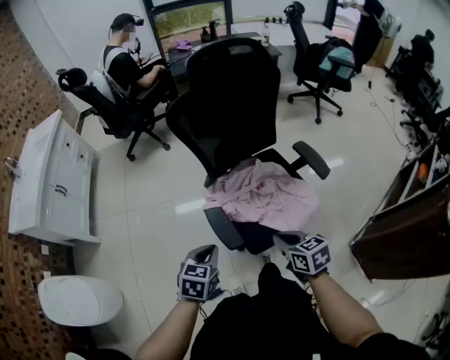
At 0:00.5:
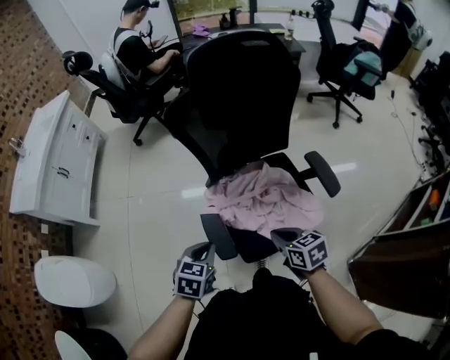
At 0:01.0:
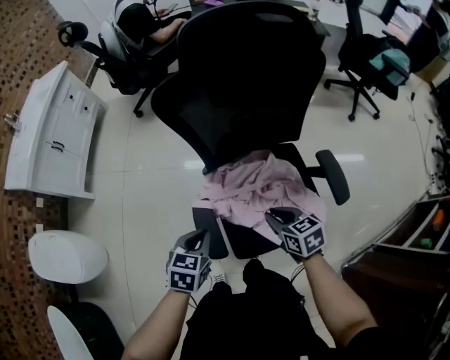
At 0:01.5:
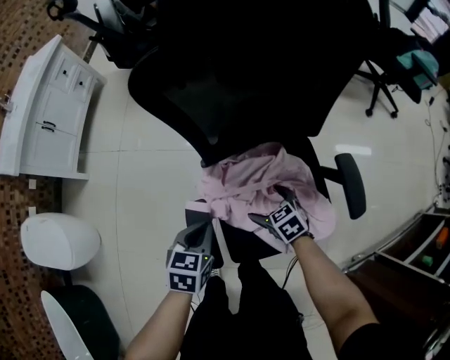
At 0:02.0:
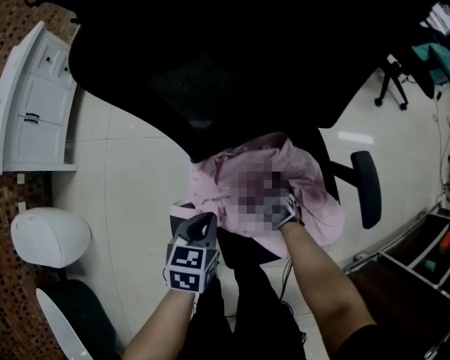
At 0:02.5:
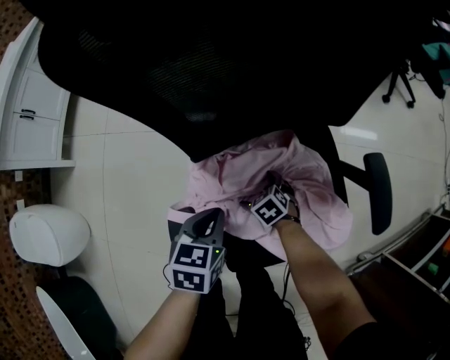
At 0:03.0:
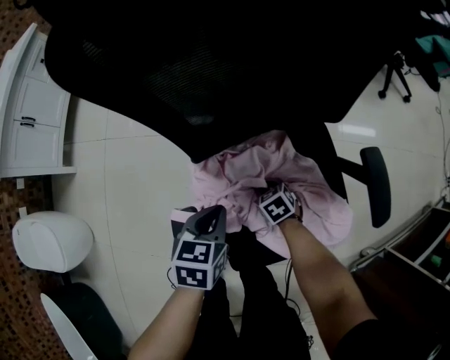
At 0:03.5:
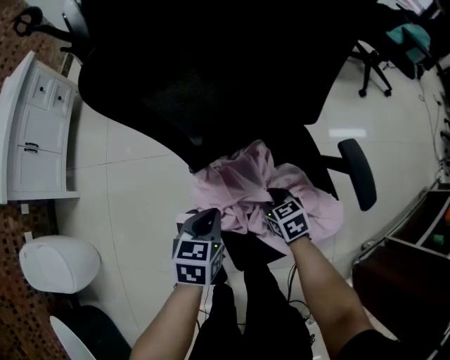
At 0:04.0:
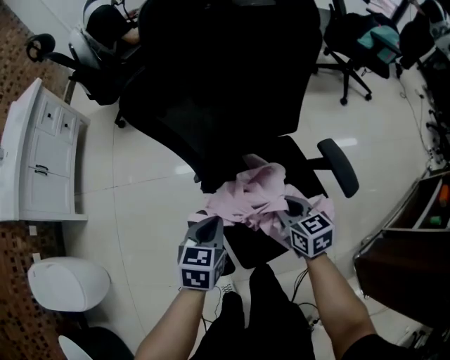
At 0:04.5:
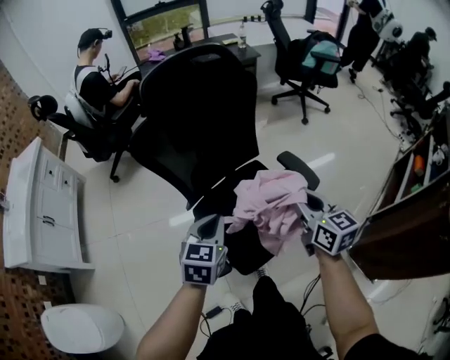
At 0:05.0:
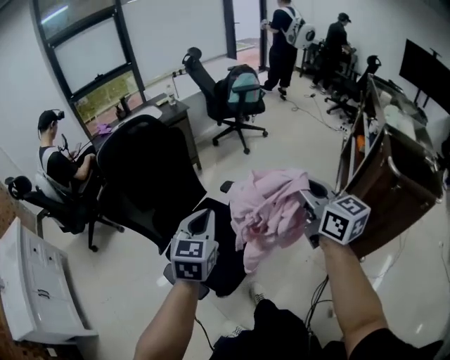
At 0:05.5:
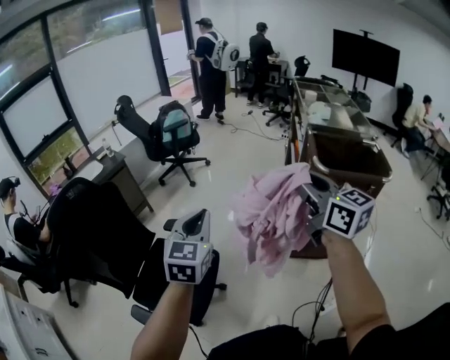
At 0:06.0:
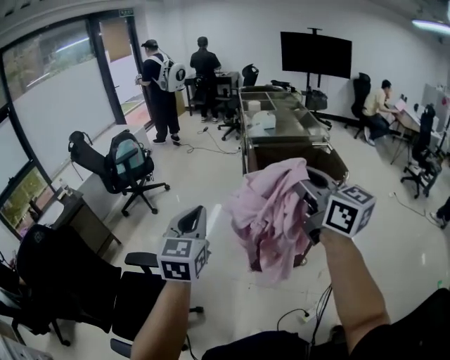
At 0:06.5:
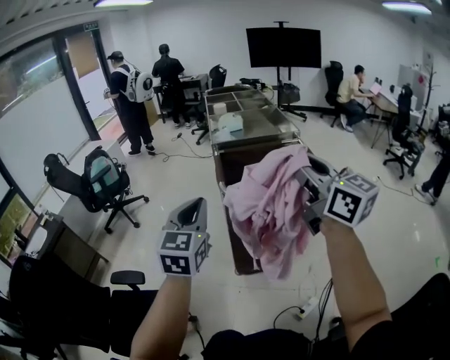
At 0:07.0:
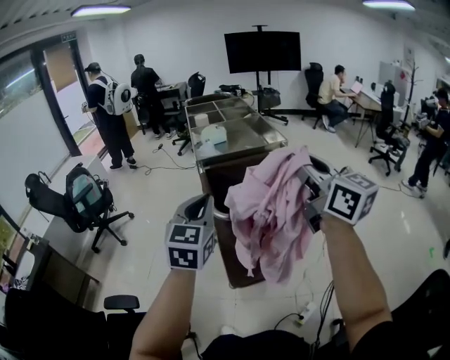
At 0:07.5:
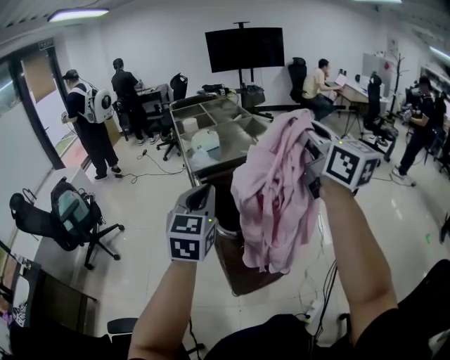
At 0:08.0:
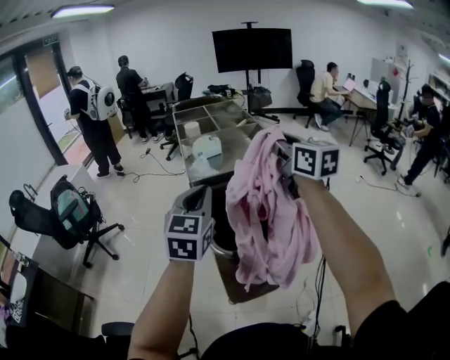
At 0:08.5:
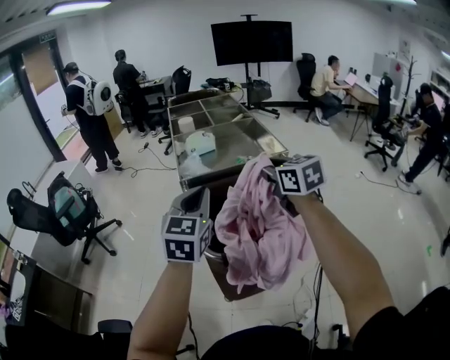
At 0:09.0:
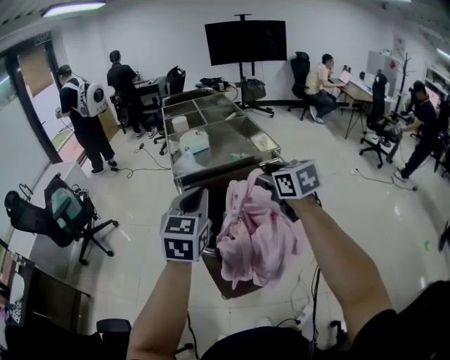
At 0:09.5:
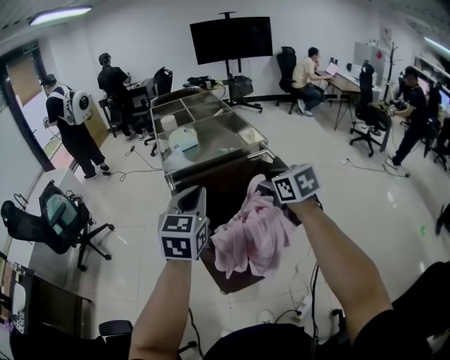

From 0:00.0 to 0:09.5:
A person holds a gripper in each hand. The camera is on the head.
From 0:00.0 to 0:02.0: The left gripper shifts approximately 30 cm forward, downward and to the right; the right gripper is displaced downward and forward by about 40 cm, changes its angle by roughly 40 degrees, and opens its fingers.
From 0:02.0 to 0:04.0: The left gripper is displaced upward by roughly 10 cm, while the right gripper heads upward, covering some 25 cm, turns by approximately 40 degrees, and closes its fingers.
From 0:04.0 to 0:05.5: The pair of grippers is taken about 50 cm. The right gripper points its fingers about 40 degrees further upward. Meanwhile the left gripper angles its fingers upward, by about 30 degrees.
From 0:05.5 to 0:07.5: The two grippers travel together, roughly 50 cm. The right gripper turns by approximately 40 degrees; the left gripper turns by approximately 40 degrees.
From 0:07.5 to 0:09.5: The right gripper moves downward, roughly 25 cm, and points its fingers about 40 degrees further downward; the left gripper shifts some 5 cm to the right.

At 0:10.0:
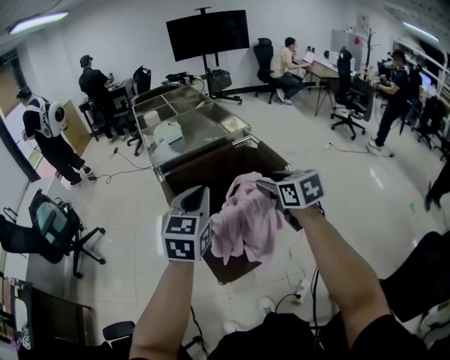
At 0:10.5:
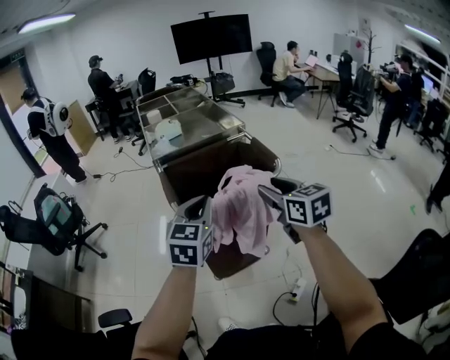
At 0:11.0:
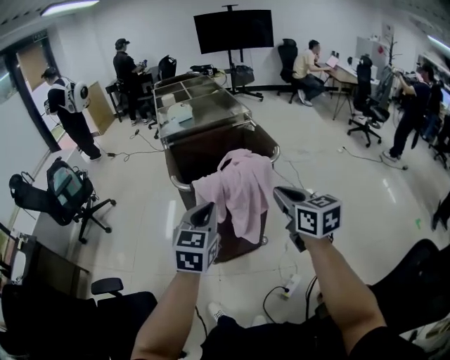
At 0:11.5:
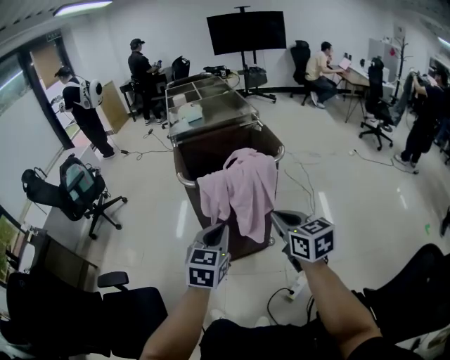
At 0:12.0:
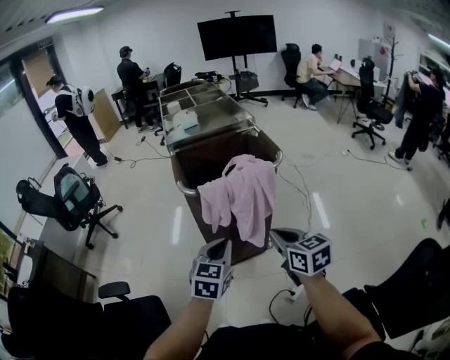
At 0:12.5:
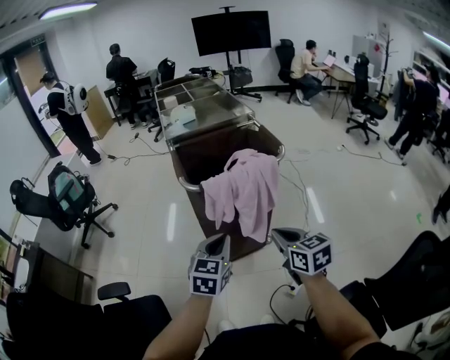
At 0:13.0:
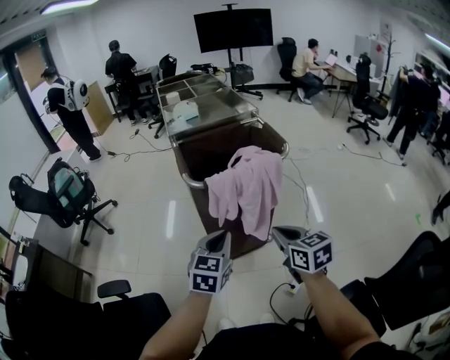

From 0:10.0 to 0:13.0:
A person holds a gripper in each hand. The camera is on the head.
From 0:10.0 to 0:11.5: The right gripper moves backward, some 25 cm, and closes. The left gripper heads backward and downward, covering roughly 25 cm.
From 0:11.5 to 0:13.0: The left gripper shifts by roughly 5 cm; the right gripper changes place by some 5 cm.

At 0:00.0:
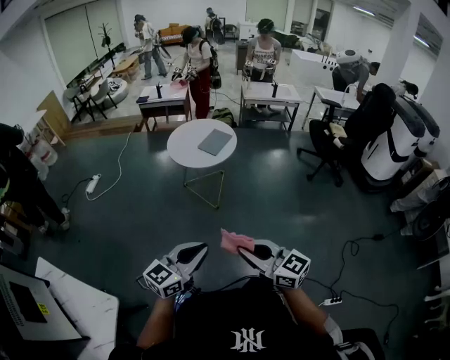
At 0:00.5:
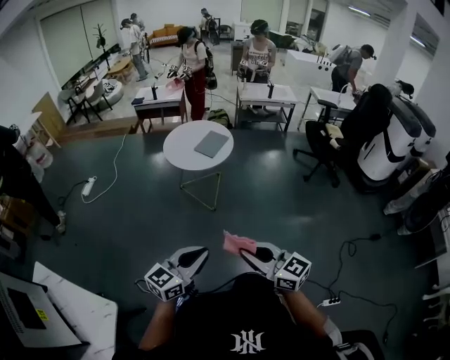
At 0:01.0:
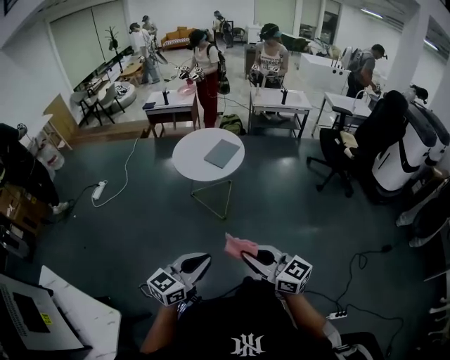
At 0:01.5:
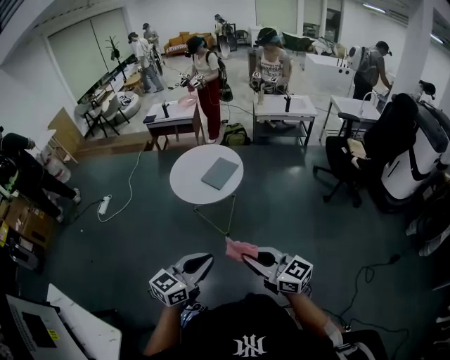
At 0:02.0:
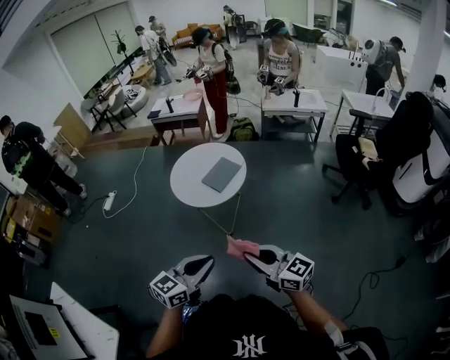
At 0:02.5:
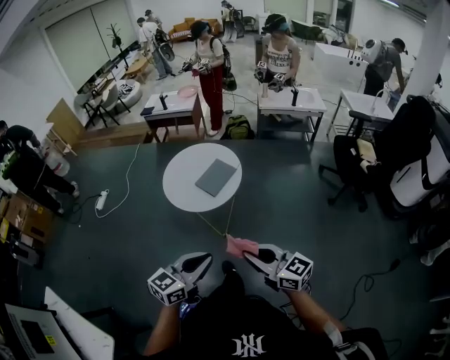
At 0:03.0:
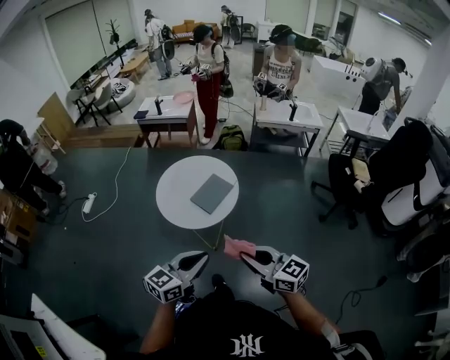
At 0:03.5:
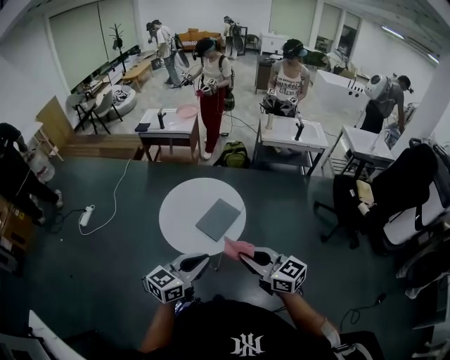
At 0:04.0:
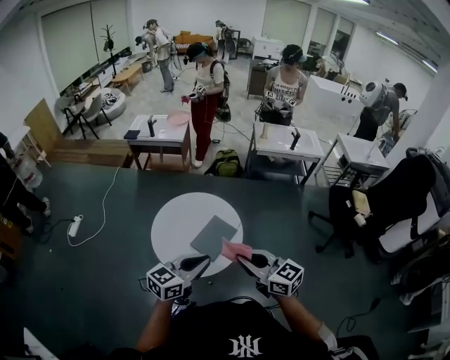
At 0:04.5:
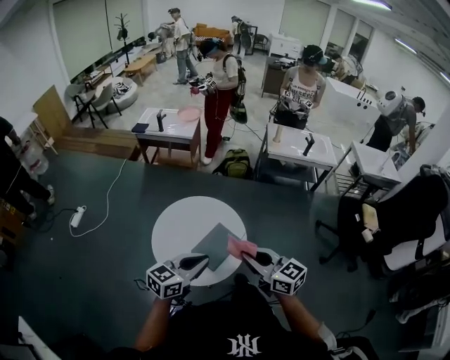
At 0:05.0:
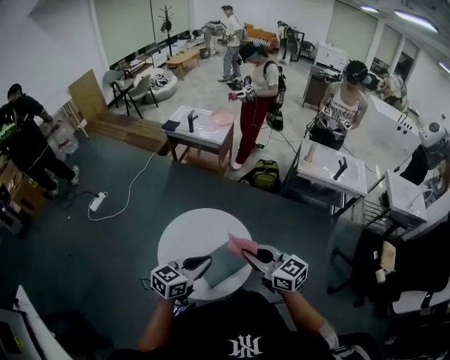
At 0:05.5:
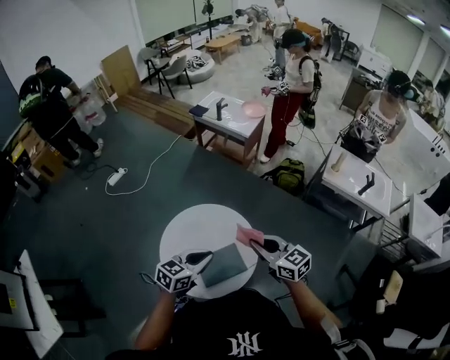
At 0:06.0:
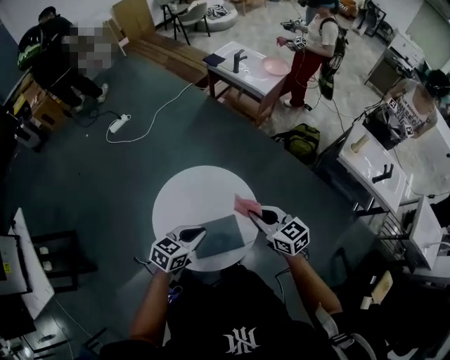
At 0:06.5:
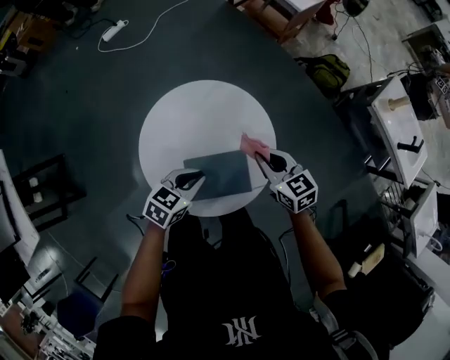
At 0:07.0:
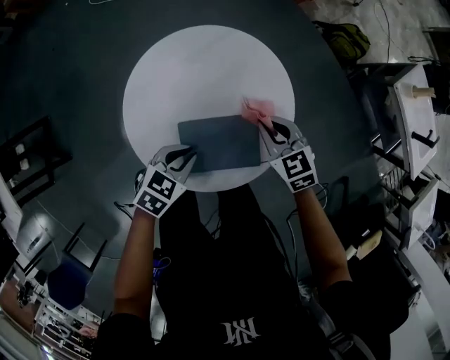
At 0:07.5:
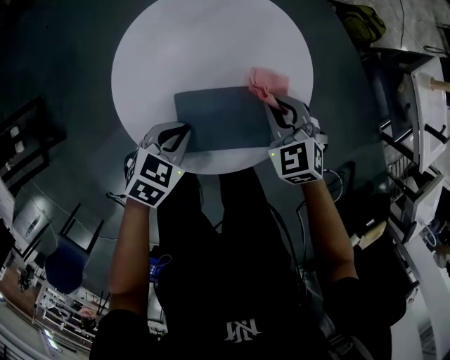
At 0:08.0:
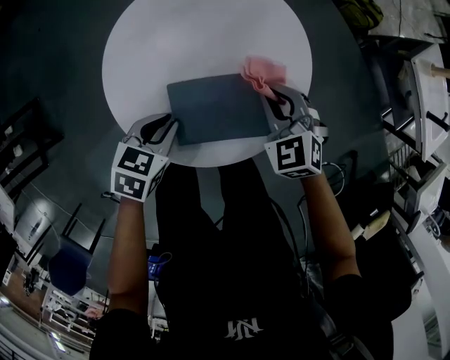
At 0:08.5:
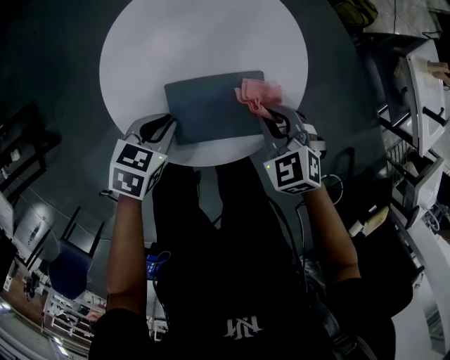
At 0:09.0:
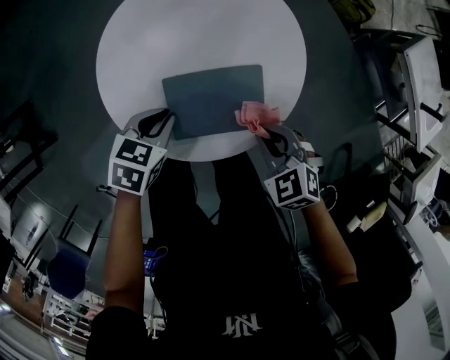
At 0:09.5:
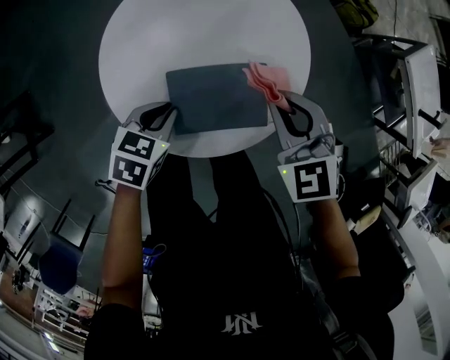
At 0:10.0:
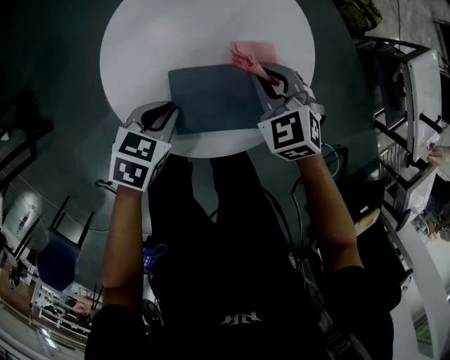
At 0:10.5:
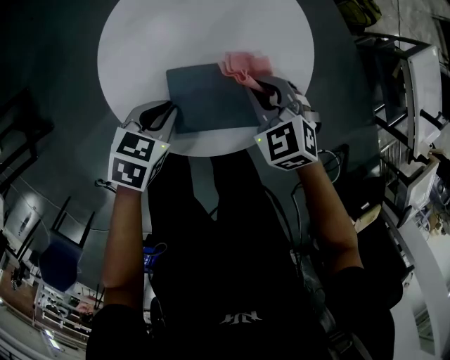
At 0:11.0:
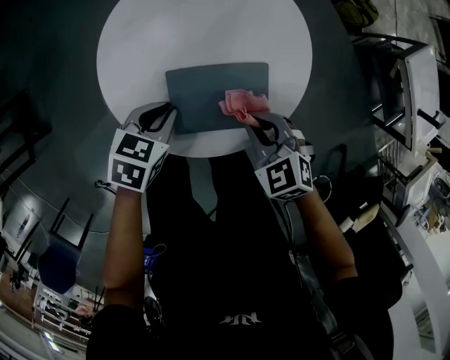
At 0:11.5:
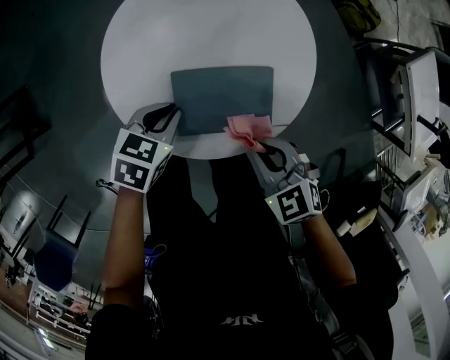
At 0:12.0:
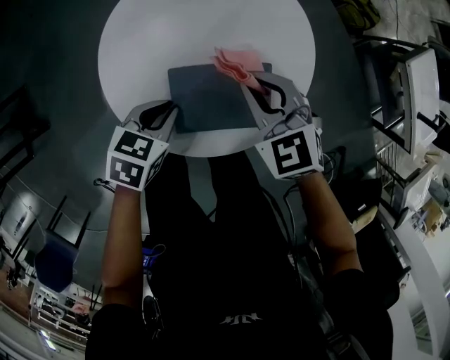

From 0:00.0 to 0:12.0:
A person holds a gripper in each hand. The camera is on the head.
From 0:00.0 to 0:02.0: Both grippers travel together forward and to the right, some 30 cm.
From 0:02.0 to 0:04.0: The pair of grippers is taken forward, approximately 40 cm.
From 0:04.0 to 0:06.0: The left gripper shifts by approximately 30 cm, and swivels some 40 degrees. Meanwhile the right gripper moves about 40 cm, and swivels roughly 40 degrees.
From 0:06.0 to 0:08.0: The grippers both shift downward by roughly 25 cm. The left gripper changes its angle by about 30 degrees. Meanwhile the right gripper changes its angle by roughly 40 degrees.
From 0:08.0 to 0:10.0: The right gripper reaches roughly 10 cm backward, then returns.
From 0:10.0 to 0:12.0: The right gripper travels backward and back again, about 15 cm each way.

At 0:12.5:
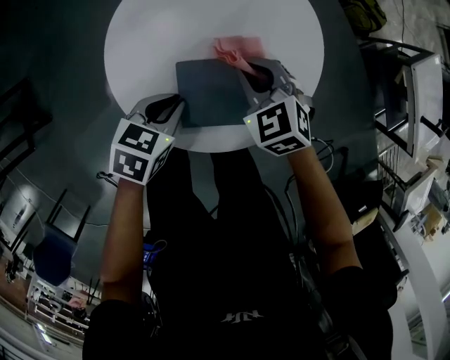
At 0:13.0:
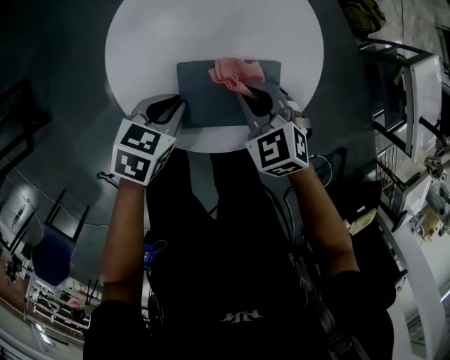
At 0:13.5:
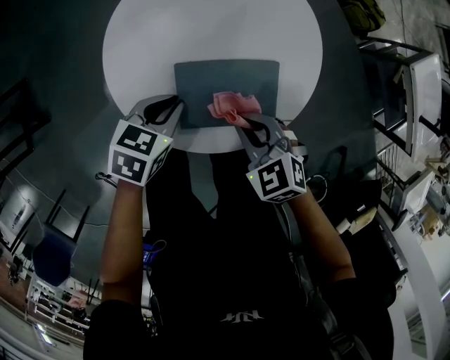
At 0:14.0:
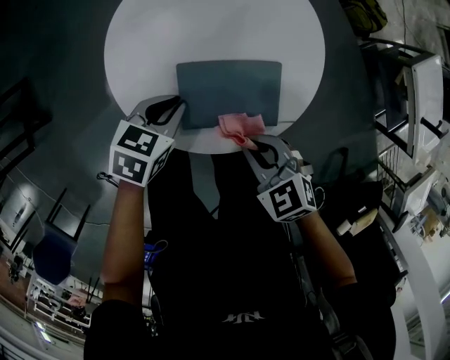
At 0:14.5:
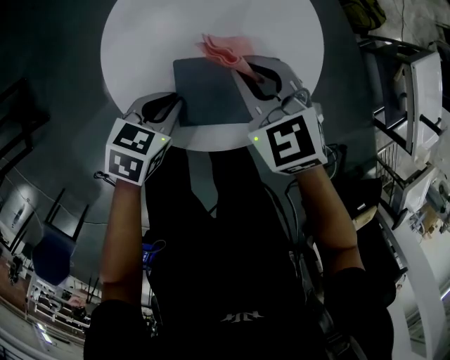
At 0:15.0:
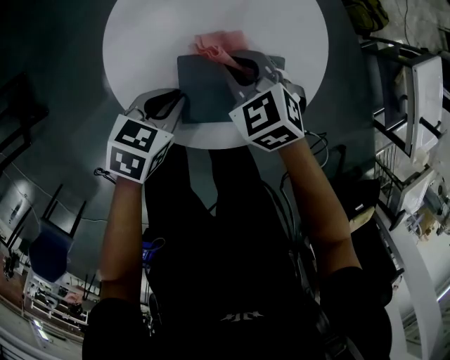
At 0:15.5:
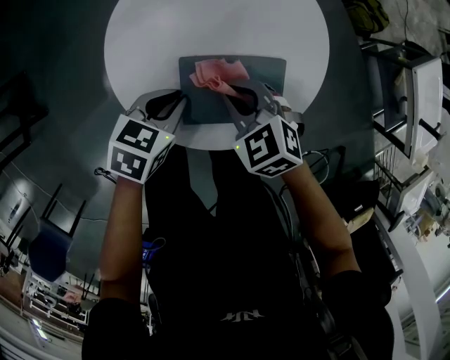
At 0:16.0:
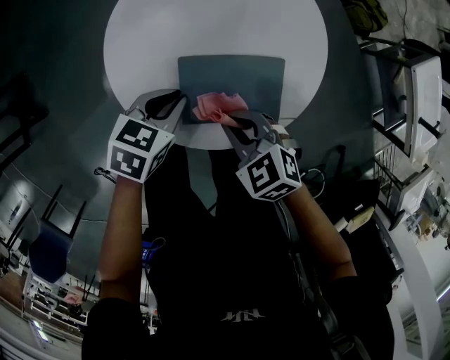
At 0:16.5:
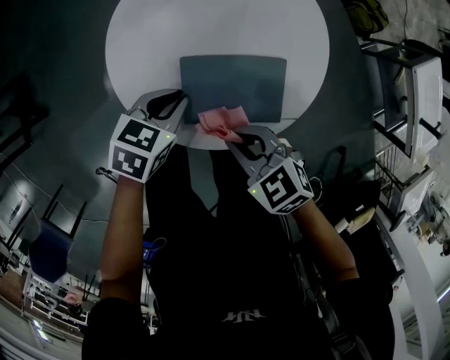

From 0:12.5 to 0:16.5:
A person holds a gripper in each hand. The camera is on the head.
From 0:12.5 to 0:14.5: The right gripper moves upward, about 5 cm, and moves about 15 cm backward and comes back.
From 0:14.5 to 0:16.5: The right gripper changes place by some 15 cm, and swivels roughly 20 degrees.
